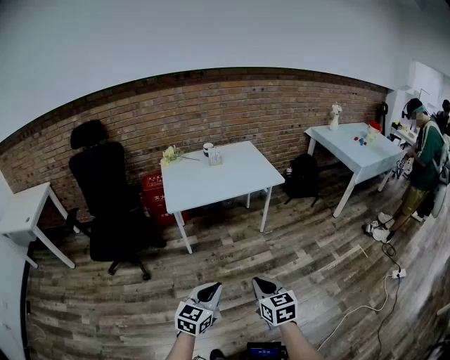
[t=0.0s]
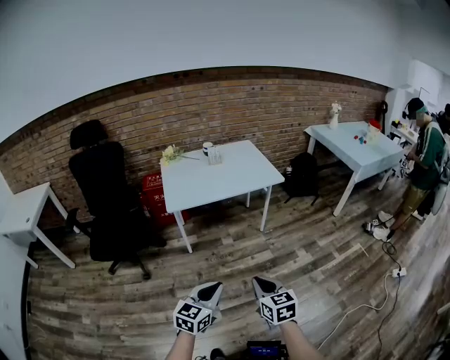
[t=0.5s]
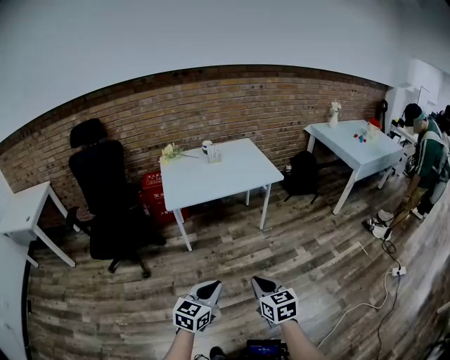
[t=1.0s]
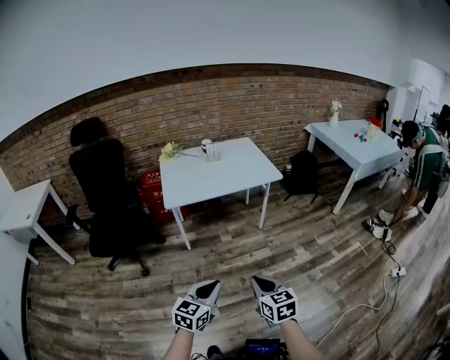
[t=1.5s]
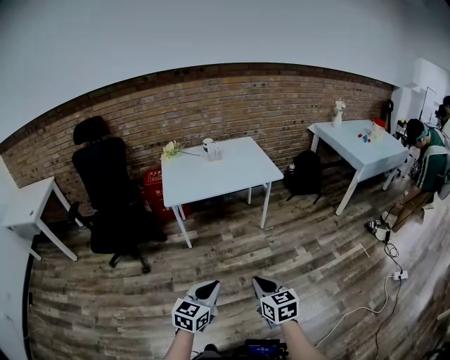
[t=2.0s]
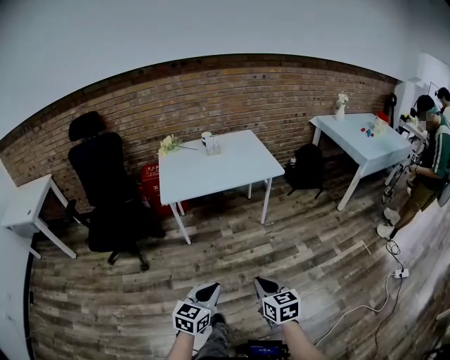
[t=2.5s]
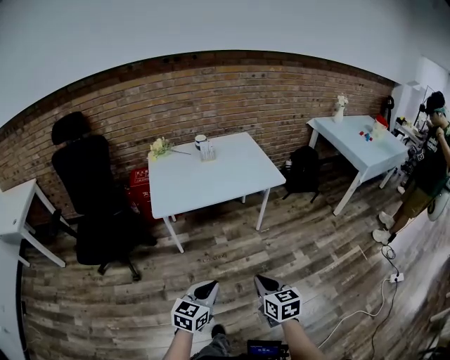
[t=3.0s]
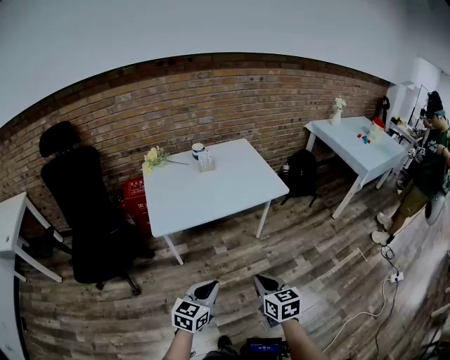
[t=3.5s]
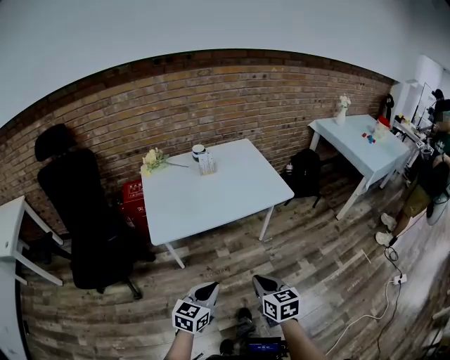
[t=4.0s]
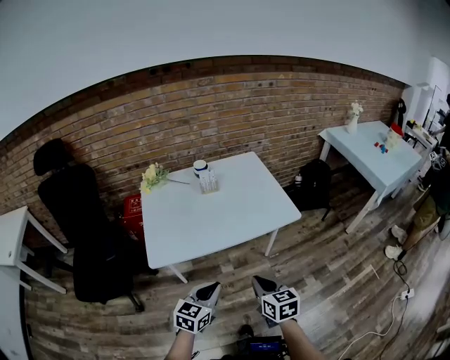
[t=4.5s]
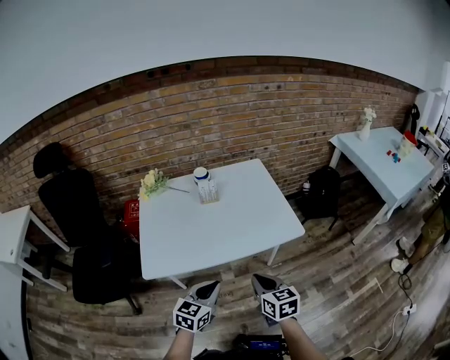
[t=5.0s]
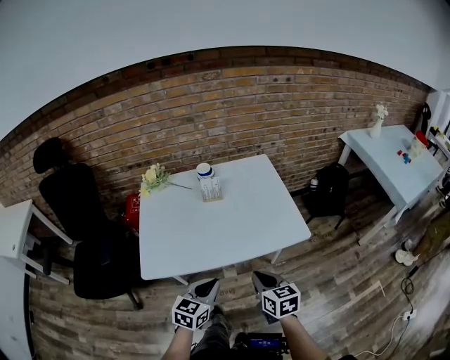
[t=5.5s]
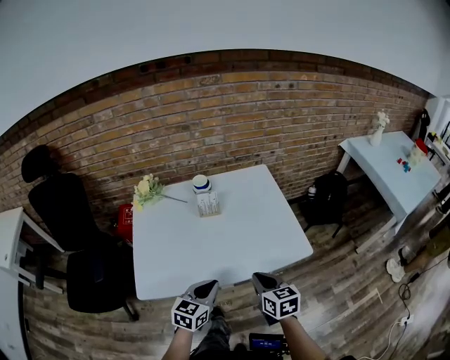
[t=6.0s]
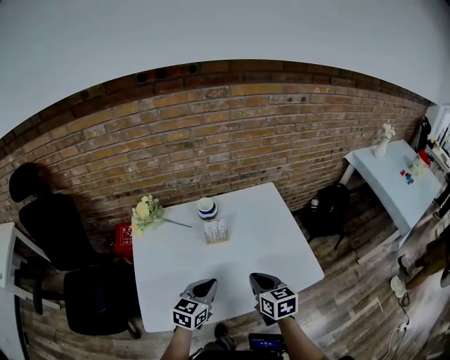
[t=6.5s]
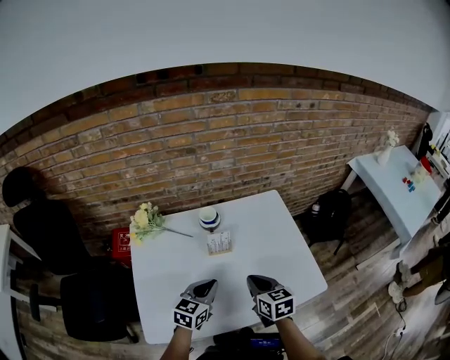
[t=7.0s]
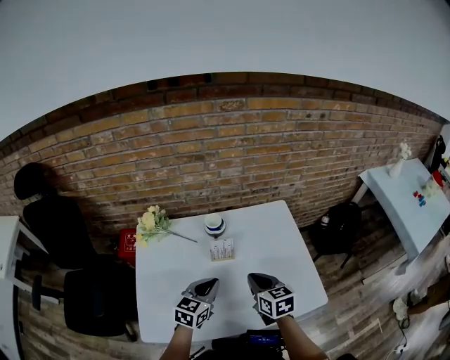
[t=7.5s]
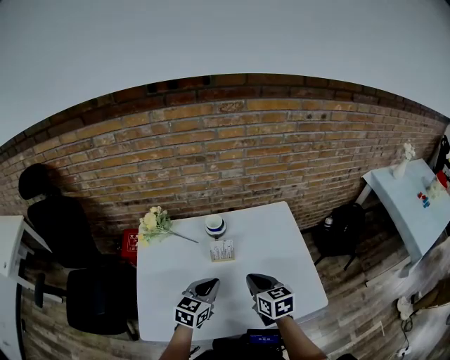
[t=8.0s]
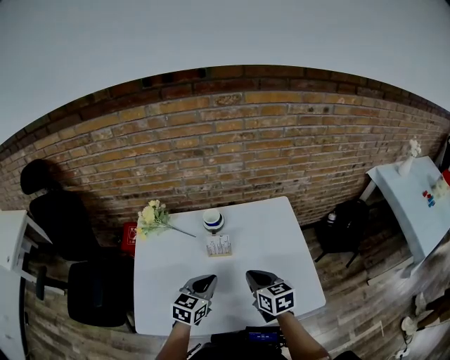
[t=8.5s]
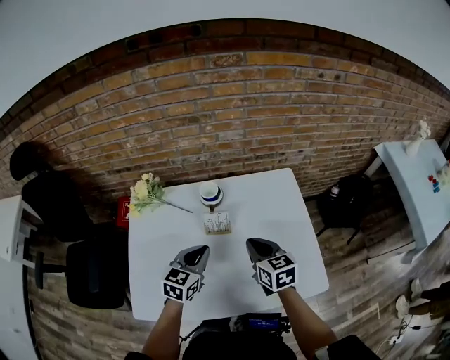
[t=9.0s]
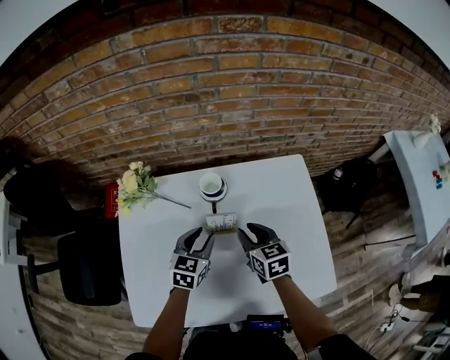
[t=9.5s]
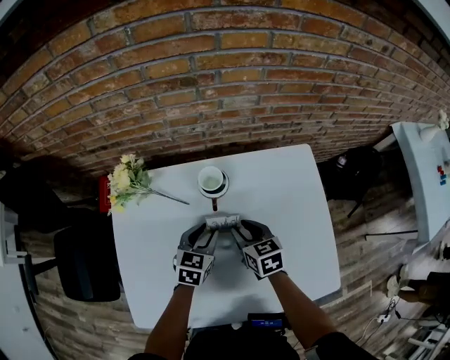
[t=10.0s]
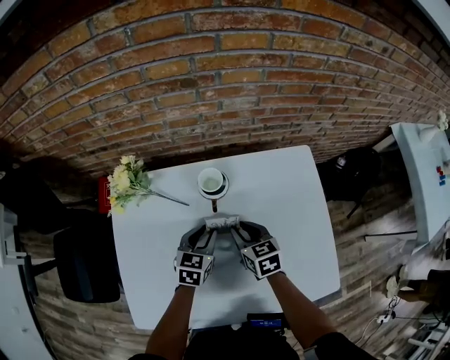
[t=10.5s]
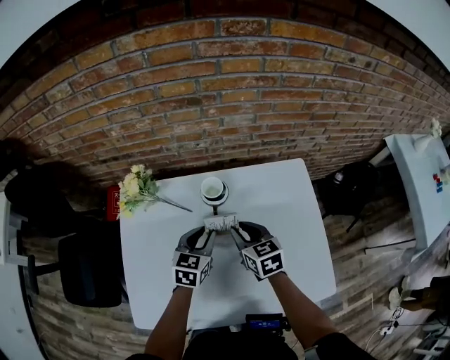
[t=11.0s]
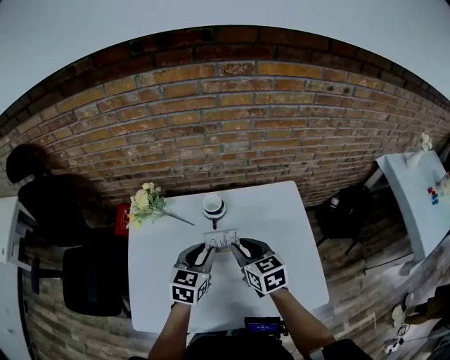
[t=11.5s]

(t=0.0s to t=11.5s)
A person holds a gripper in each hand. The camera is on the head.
t=0.0s - t=2.0s: The right gripper is displaced to the right by about 5 cm.
t=2.0s - t=4.0s: The grippers both shift forward by approximately 30 cm.
t=4.0s - t=6.0s: The two grippers go about 35 cm forward.
t=6.0s - t=7.5s: The two grippers go about 20 cm forward.
t=7.5s - t=9.5s: Both grippers travel together forward and downward, roughly 15 cm. The right gripper opens its fingers. Meanwhile the left gripper opens up.
t=9.5s - t=11.5s: Both grippers travel together upward, about 10 cm.

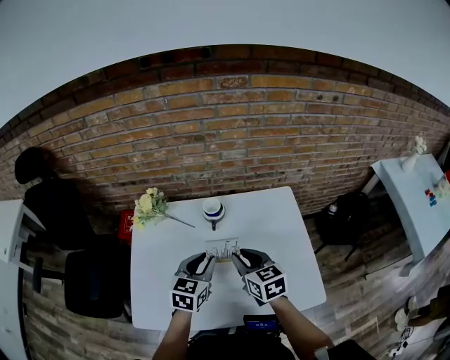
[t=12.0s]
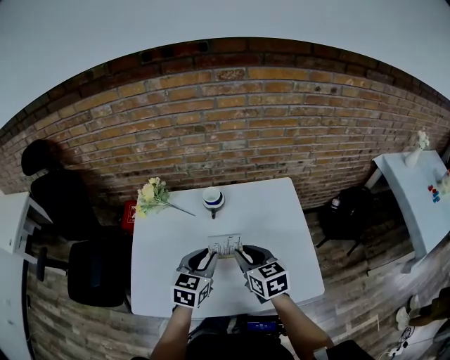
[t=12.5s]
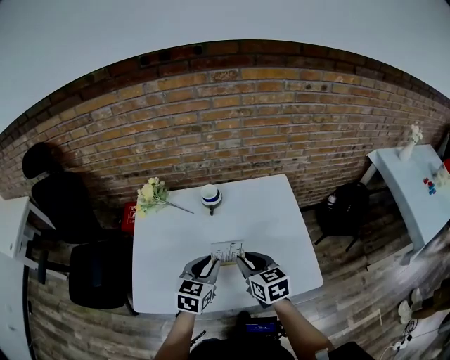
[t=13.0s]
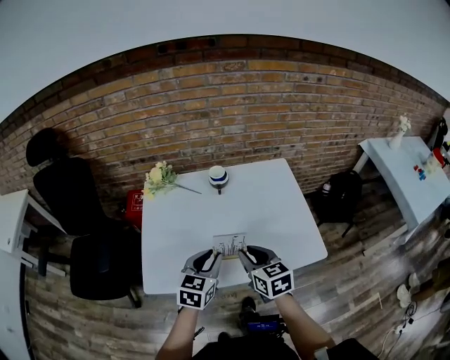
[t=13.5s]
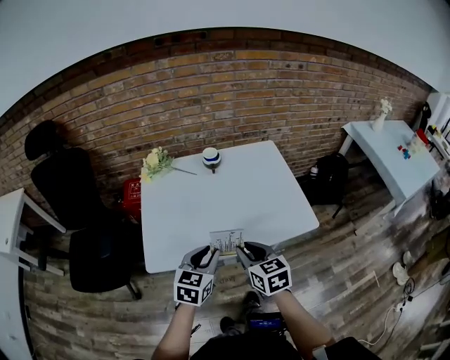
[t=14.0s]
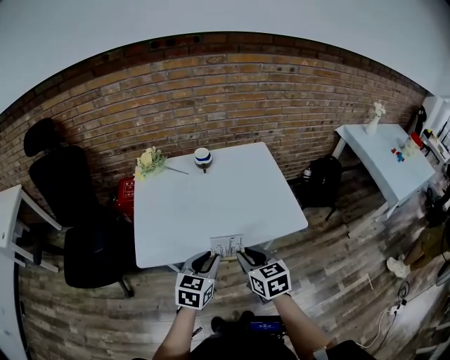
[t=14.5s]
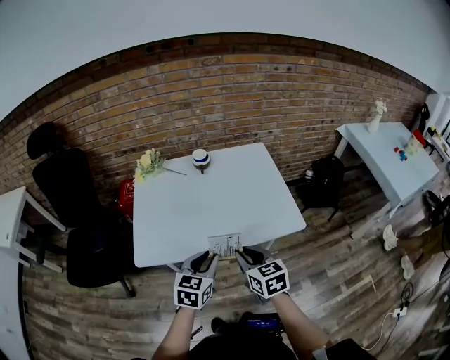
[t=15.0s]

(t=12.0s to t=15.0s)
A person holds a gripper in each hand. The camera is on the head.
t=12.0s - t=13.5s: The two grippers go about 15 cm backward.
t=13.5s - t=15.0s: The two grippers go approximately 15 cm backward.

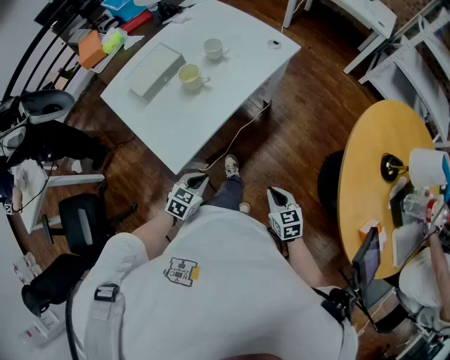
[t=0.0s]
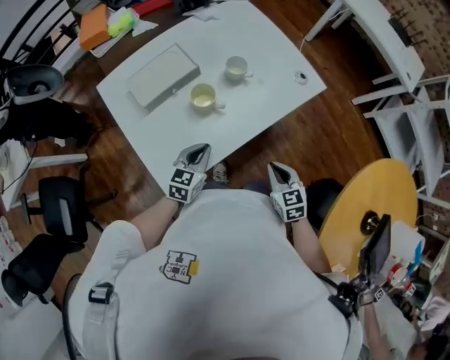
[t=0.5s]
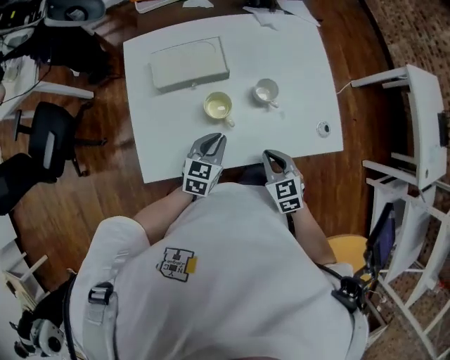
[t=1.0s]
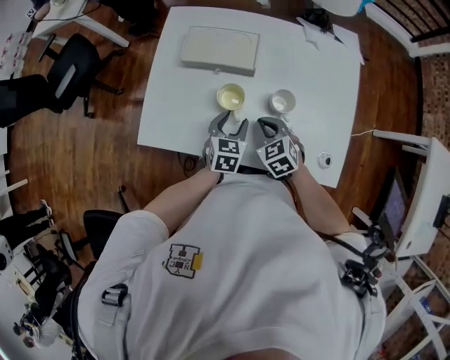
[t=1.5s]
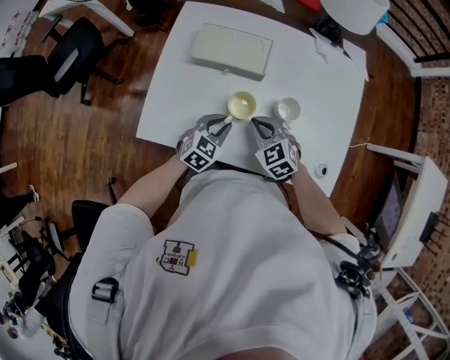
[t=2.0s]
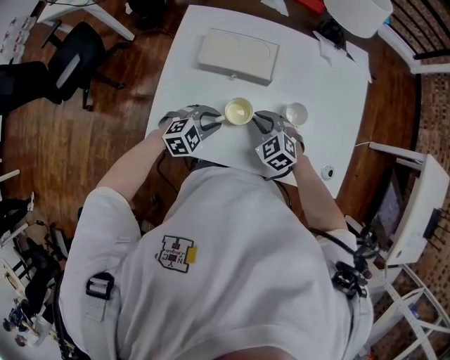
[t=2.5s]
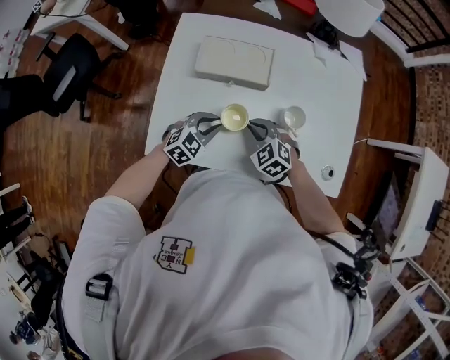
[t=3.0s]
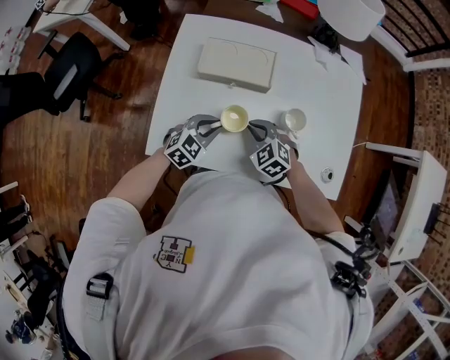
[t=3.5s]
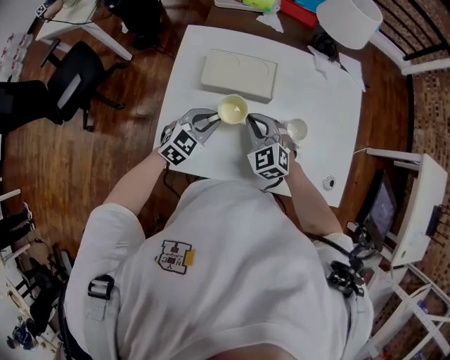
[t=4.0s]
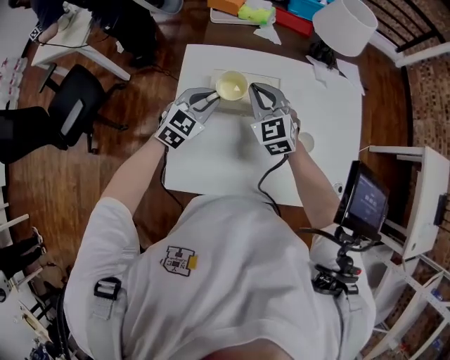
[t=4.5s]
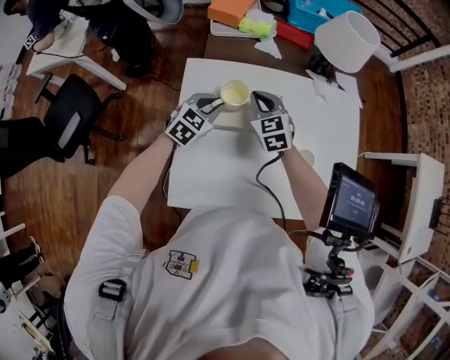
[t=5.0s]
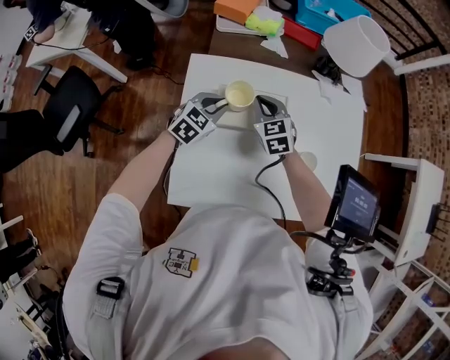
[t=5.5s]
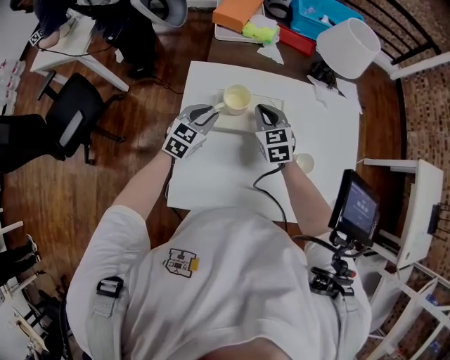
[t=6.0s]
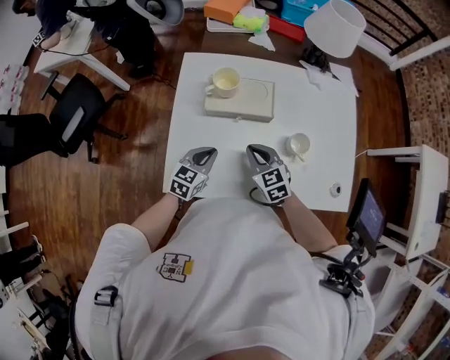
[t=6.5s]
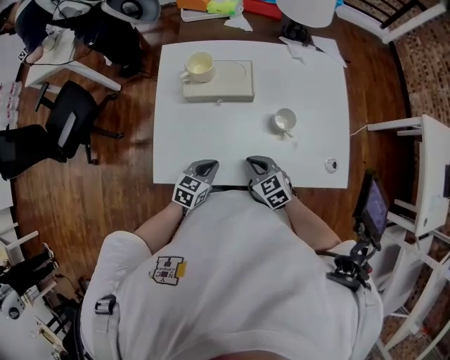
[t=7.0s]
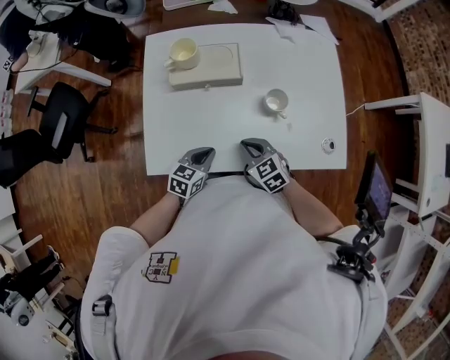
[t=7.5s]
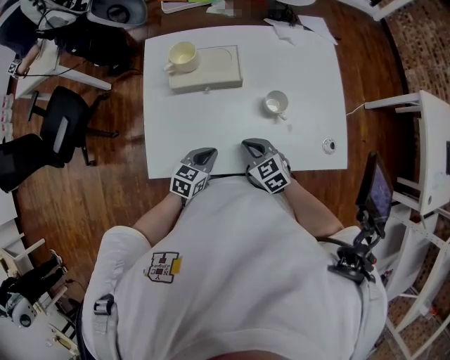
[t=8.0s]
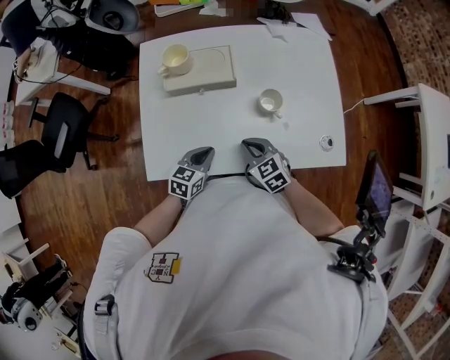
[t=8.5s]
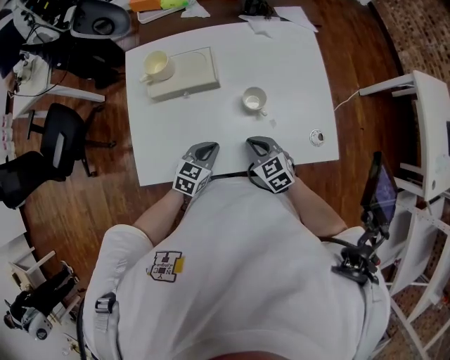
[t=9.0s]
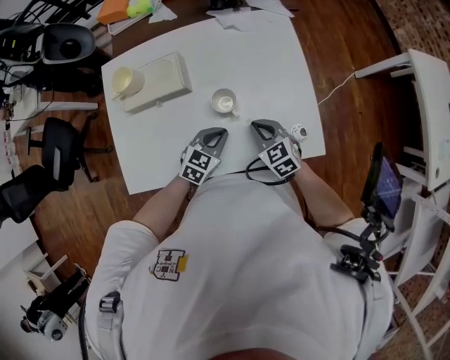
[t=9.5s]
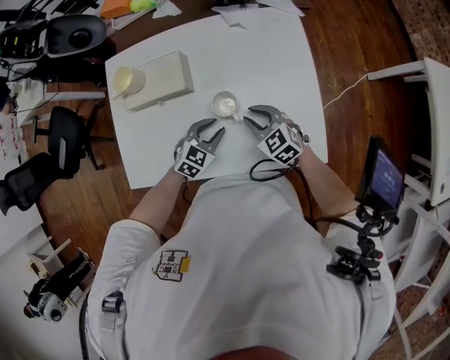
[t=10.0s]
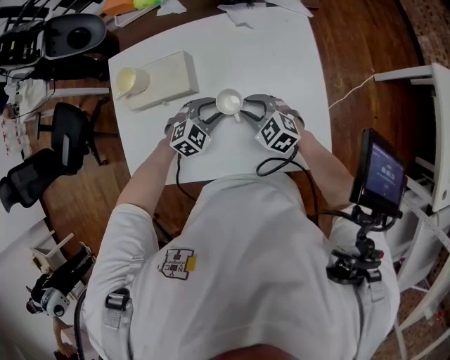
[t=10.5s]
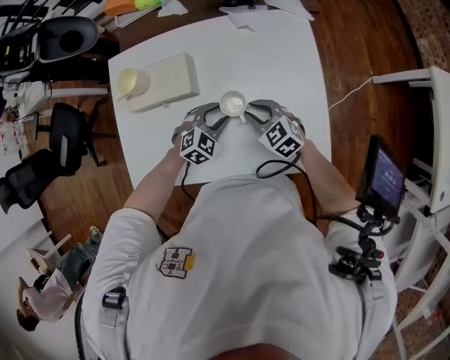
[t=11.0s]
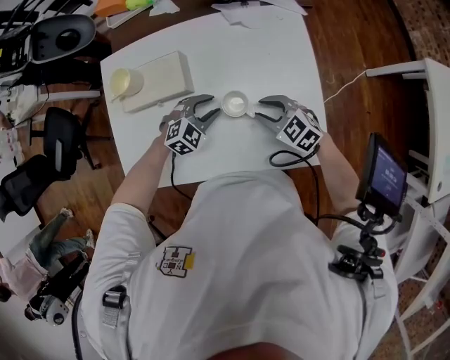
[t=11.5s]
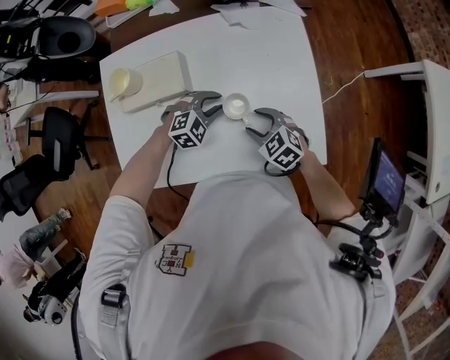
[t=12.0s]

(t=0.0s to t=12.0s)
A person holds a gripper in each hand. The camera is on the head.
t=0.0s - t=2.0s: The right gripper ends up roughly 50 cm from where it was, and turns by some 90 degrees. The left gripper changes place by some 35 cm, turns by about 50 degrees, and opens and closes again.
t=2.0s - t=4.0s: The right gripper goes about 10 cm to the left and forward; the left gripper heads to the left, forward and upward, covering some 15 cm.
t=4.0s - t=6.0s: The left gripper shifts approximately 15 cm forward and to the left. The right gripper goes approximately 15 cm forward, and turns by roughly 30 degrees.
t=6.0s - t=8.0s: The left gripper is displaced backward and to the right by roughly 30 cm, rotates approximately 20 degrees, and closes up. Meanwhile the right gripper goes some 25 cm backward.
t=8.0s - t=10.0s: Both grippers travel together to the right and forward, some 20 cm. The left gripper swivels about 30 degrees, and opens; the right gripper opens.
t=10.0s - t=12.0s: The right gripper opens its fingers, while the left gripper goes some 5 cm forward, and rotates approximately 30 degrees.
